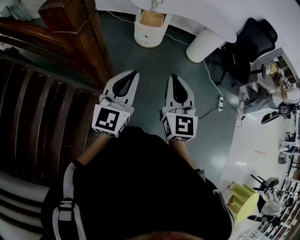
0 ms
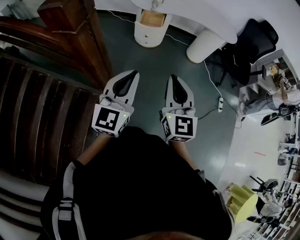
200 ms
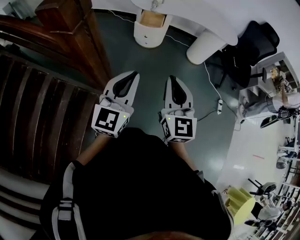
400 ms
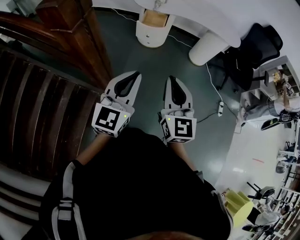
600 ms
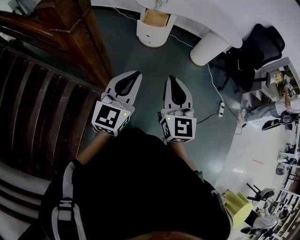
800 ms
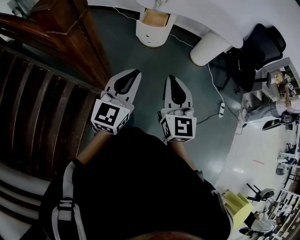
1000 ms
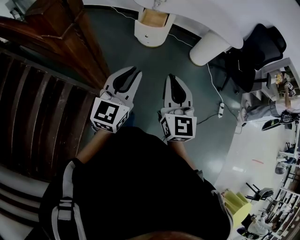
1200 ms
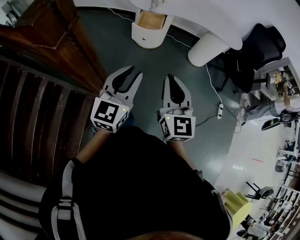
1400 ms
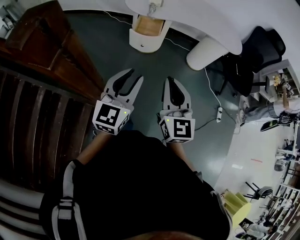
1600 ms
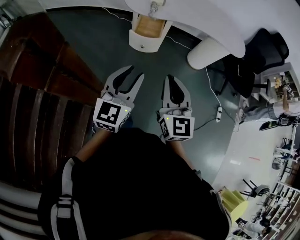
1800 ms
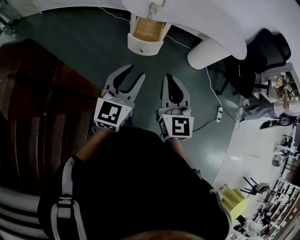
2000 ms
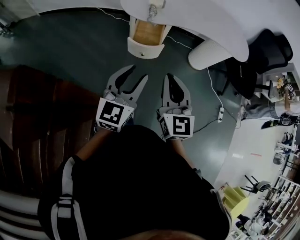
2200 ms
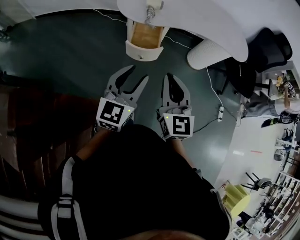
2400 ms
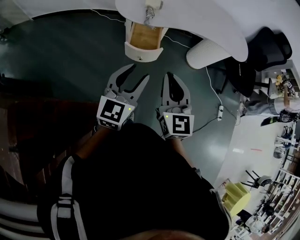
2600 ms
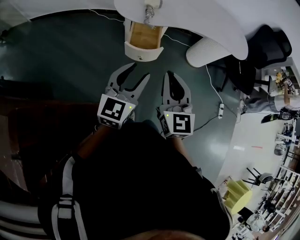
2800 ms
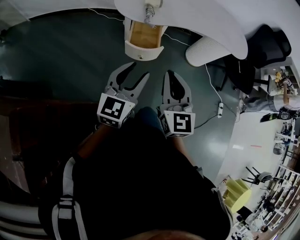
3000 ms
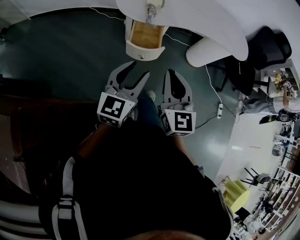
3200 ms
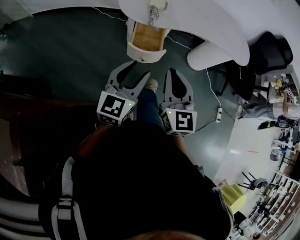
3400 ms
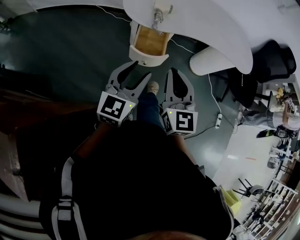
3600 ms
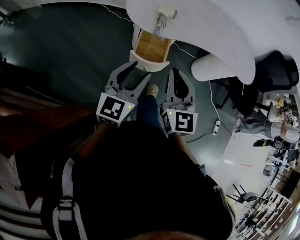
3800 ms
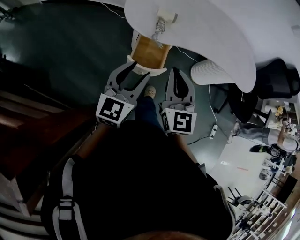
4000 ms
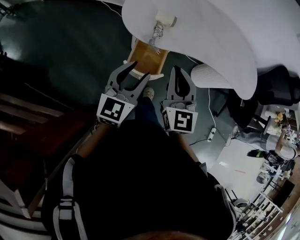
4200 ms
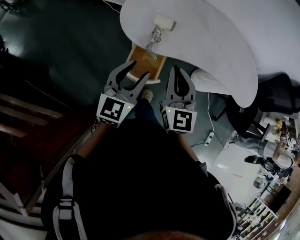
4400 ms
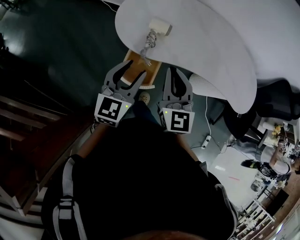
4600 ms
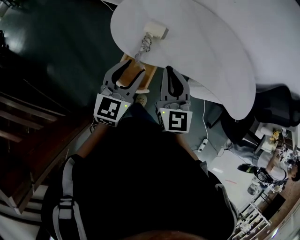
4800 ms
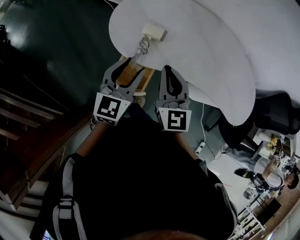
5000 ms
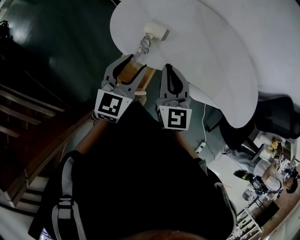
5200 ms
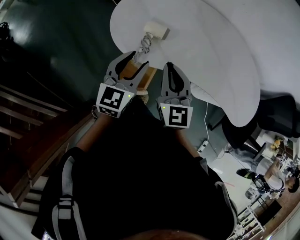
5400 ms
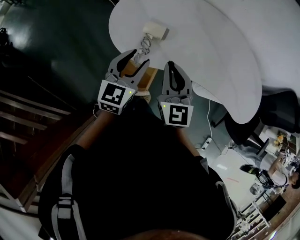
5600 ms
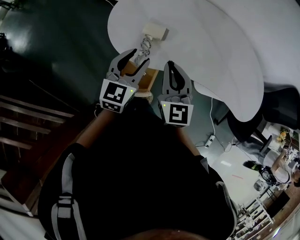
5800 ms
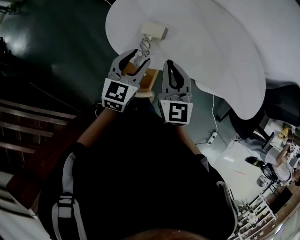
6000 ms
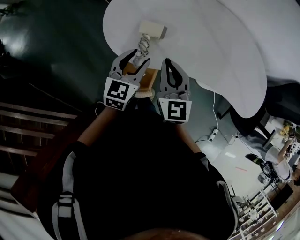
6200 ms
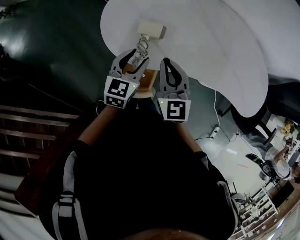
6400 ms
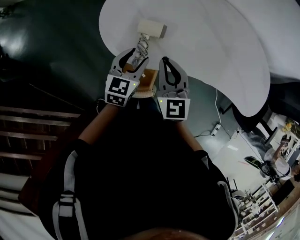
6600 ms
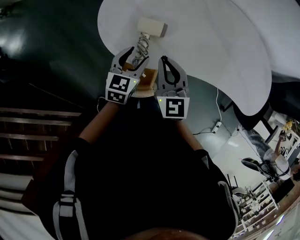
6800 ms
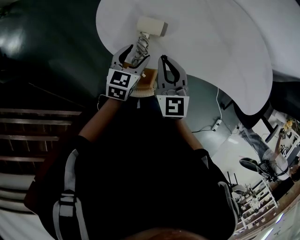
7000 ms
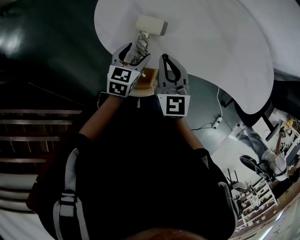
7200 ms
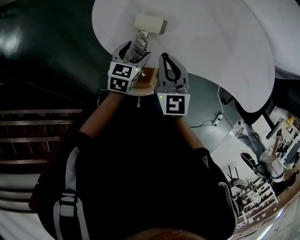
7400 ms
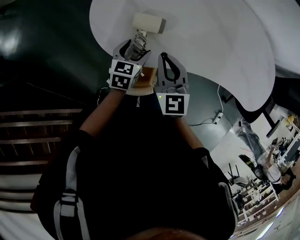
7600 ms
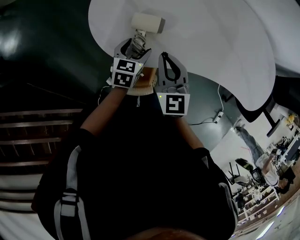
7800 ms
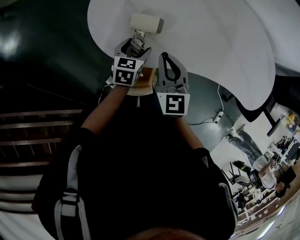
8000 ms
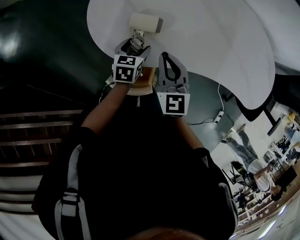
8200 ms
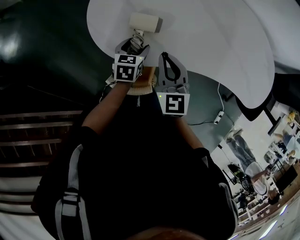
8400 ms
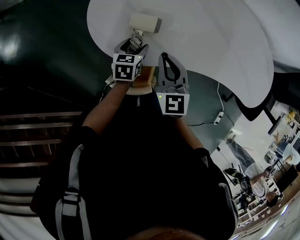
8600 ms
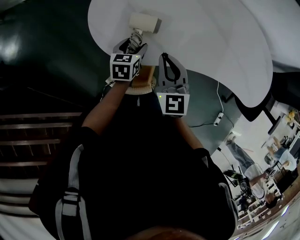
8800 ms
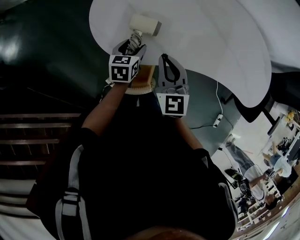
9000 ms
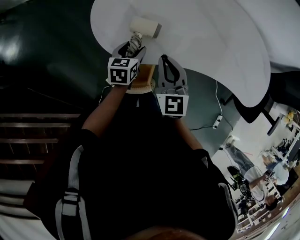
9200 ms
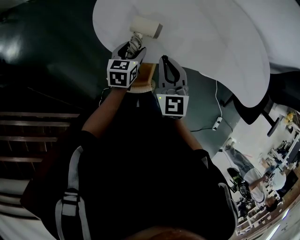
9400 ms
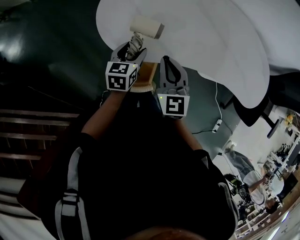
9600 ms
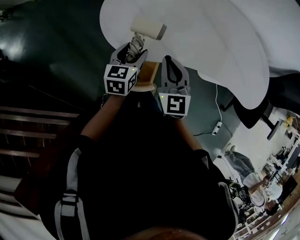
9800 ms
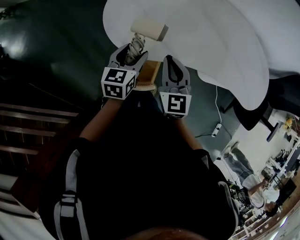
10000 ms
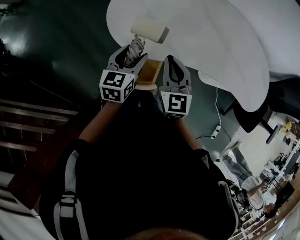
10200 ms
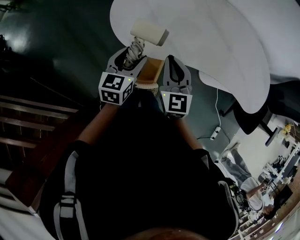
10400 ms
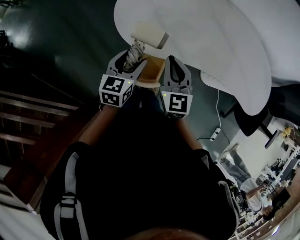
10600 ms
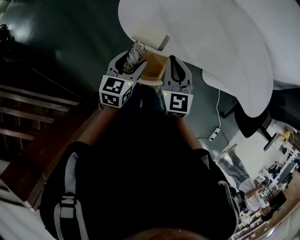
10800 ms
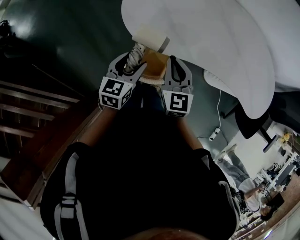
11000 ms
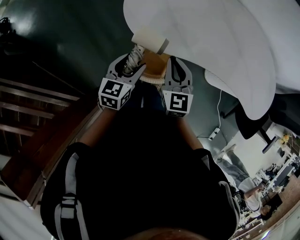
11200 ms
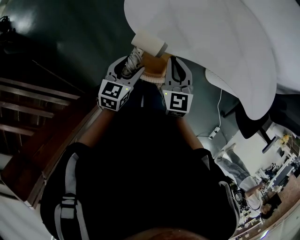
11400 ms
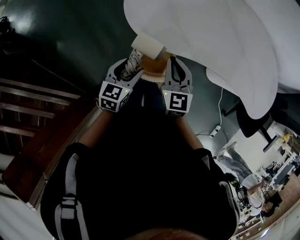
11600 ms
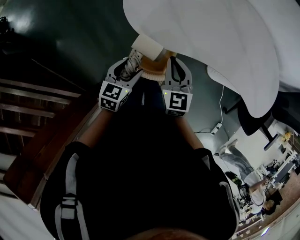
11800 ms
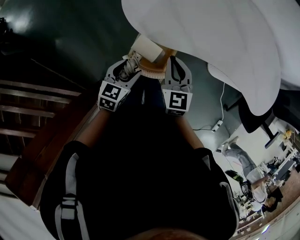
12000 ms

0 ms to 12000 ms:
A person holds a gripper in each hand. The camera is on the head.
0 ms to 1600 ms: The grippers both shift forward by roughly 15 cm.
1600 ms to 3000 ms: Both grippers move forward, approximately 25 cm.
3000 ms to 4400 ms: Both grippers travel together forward, some 25 cm.
4400 ms to 6000 ms: The right gripper travels forward and downward by some 15 cm; the left gripper heads forward, covering roughly 20 cm.
6000 ms to 7600 ms: The right gripper heads downward and forward, covering some 10 cm. The left gripper is displaced downward and forward by approximately 20 cm, swivels about 30 degrees, and opens its fingers.
7600 ms to 9000 ms: The grippers move only a little.
9000 ms to 10400 ms: The left gripper travels upward and backward by some 15 cm; the right gripper heads backward, covering approximately 5 cm.
10400 ms to 12000 ms: The right gripper moves downward, roughly 10 cm; the left gripper shifts about 15 cm downward and backward.

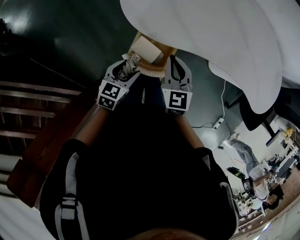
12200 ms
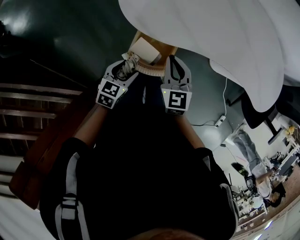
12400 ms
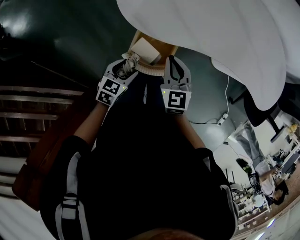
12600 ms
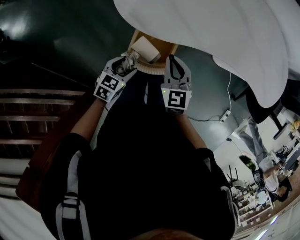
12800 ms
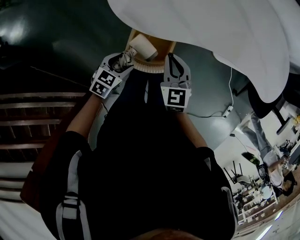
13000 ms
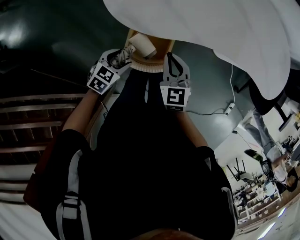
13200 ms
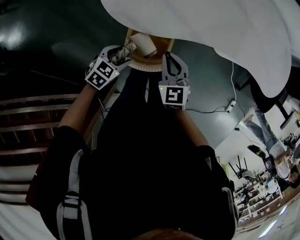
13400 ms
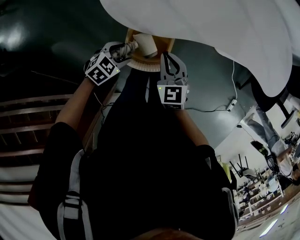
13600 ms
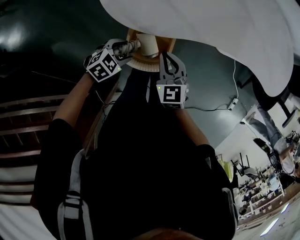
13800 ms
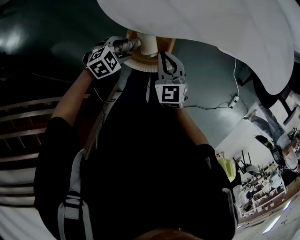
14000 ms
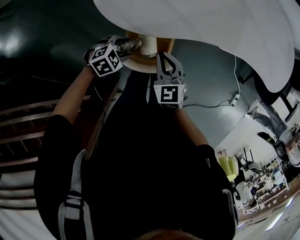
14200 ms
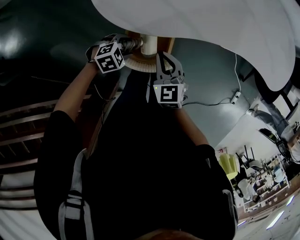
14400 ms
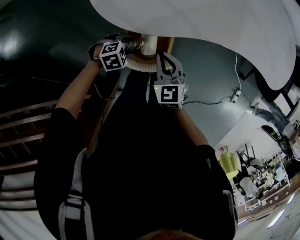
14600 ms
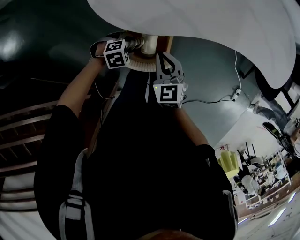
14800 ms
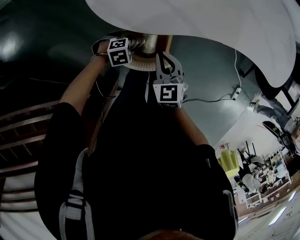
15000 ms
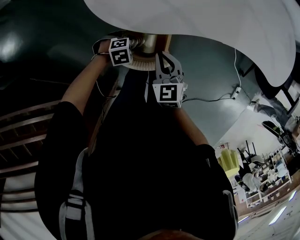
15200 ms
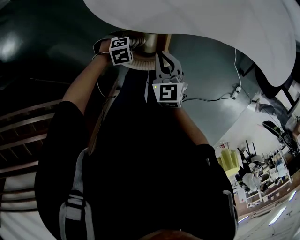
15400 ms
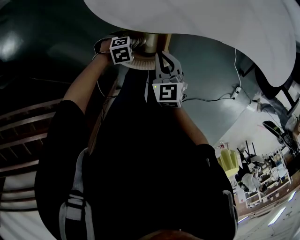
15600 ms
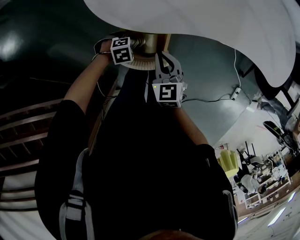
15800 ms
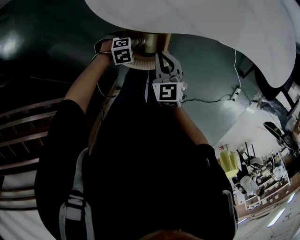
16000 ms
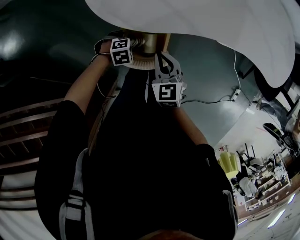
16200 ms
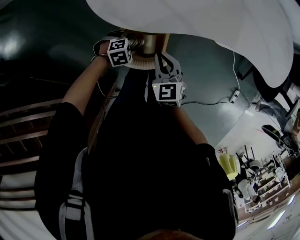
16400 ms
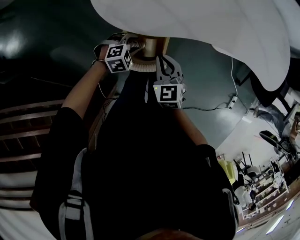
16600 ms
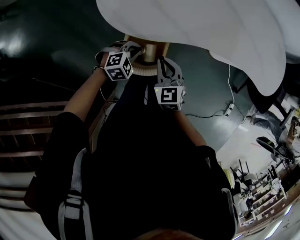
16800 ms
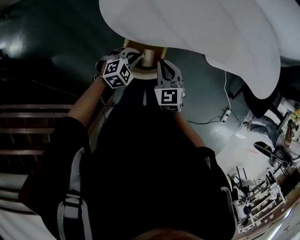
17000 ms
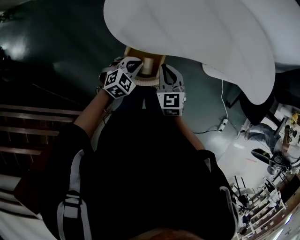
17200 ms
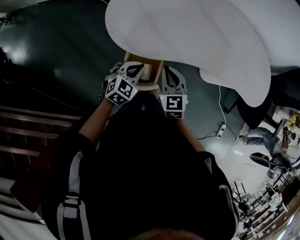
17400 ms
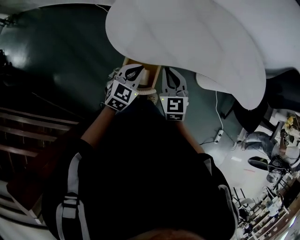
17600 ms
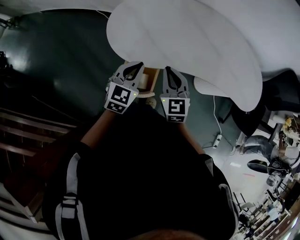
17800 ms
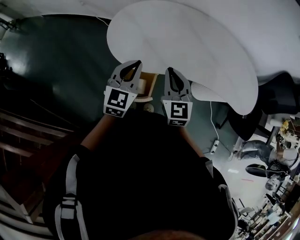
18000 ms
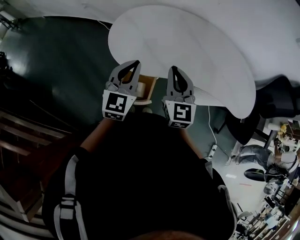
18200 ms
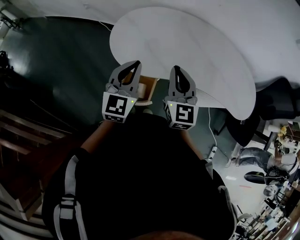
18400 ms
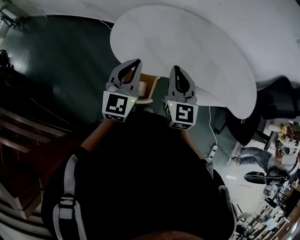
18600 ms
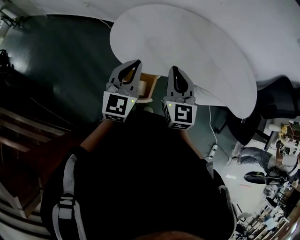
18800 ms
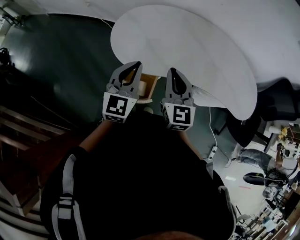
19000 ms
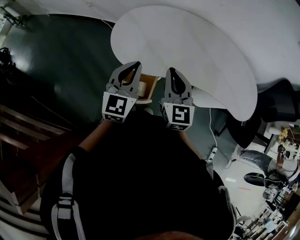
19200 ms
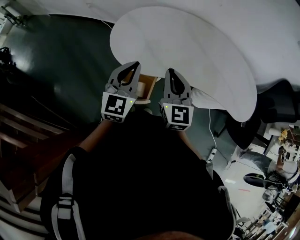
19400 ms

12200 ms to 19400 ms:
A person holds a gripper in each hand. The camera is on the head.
12200 ms to 13600 ms: The grippers both shift downward by roughly 5 cm. The left gripper swivels roughly 40 degrees.
13600 ms to 15000 ms: The left gripper shifts about 10 cm downward, and changes its angle by roughly 30 degrees.
15000 ms to 16600 ms: The left gripper is displaced upward by about 5 cm.
16600 ms to 18000 ms: The two grippers go roughly 30 cm upward. The left gripper tips its fingers upward by approximately 50 degrees, and closes; the right gripper rotates approximately 30 degrees.
18000 ms to 19400 ms: The grippers stay close to where they were, moving slightly.

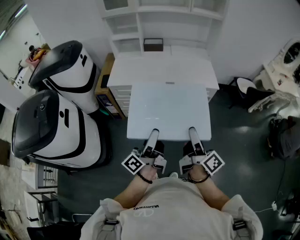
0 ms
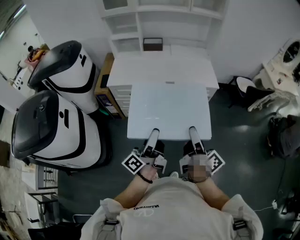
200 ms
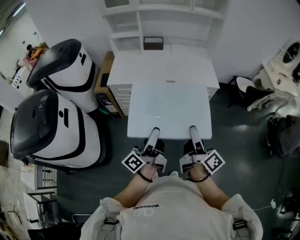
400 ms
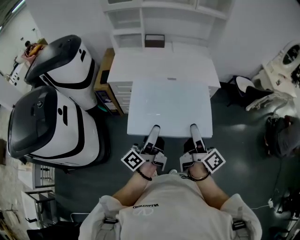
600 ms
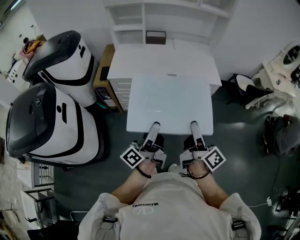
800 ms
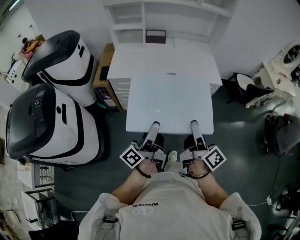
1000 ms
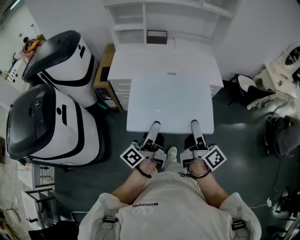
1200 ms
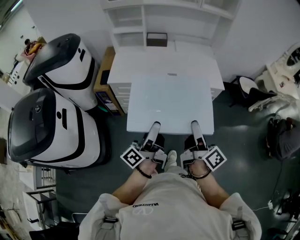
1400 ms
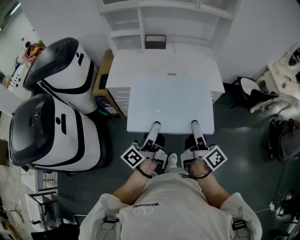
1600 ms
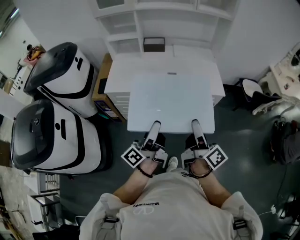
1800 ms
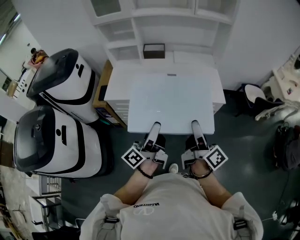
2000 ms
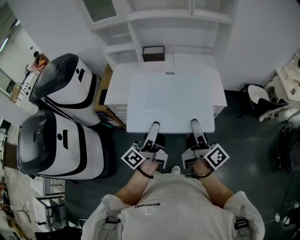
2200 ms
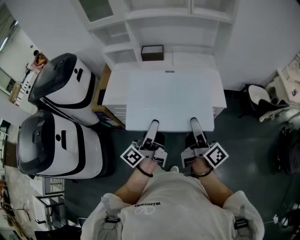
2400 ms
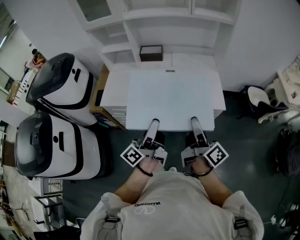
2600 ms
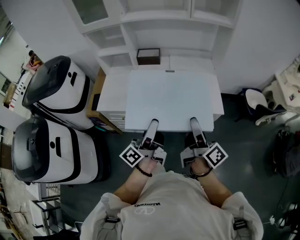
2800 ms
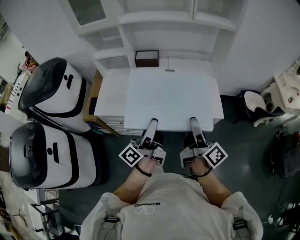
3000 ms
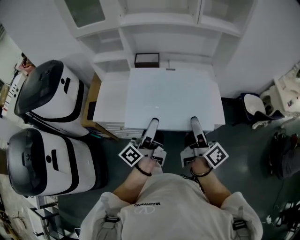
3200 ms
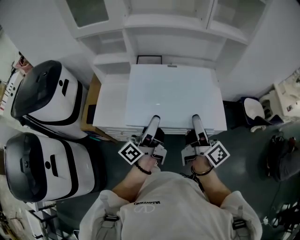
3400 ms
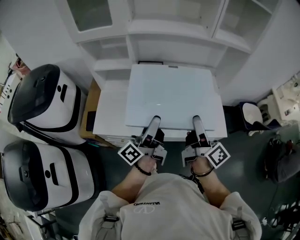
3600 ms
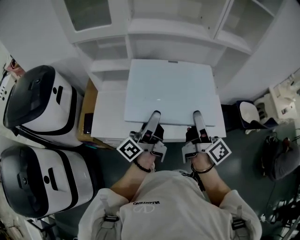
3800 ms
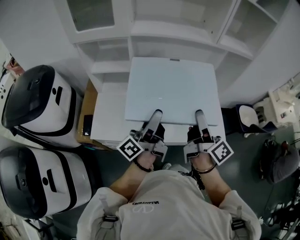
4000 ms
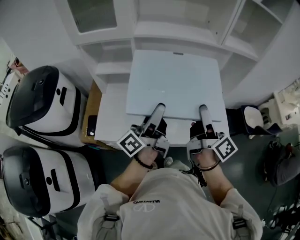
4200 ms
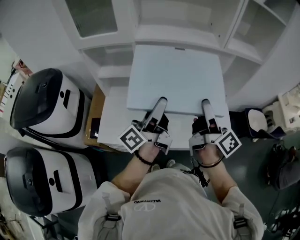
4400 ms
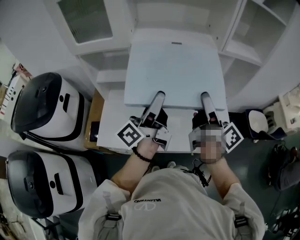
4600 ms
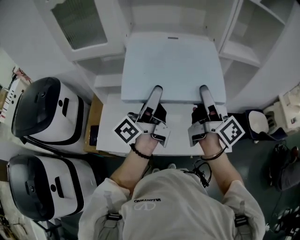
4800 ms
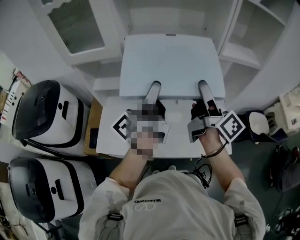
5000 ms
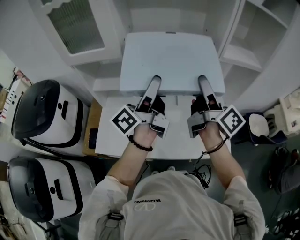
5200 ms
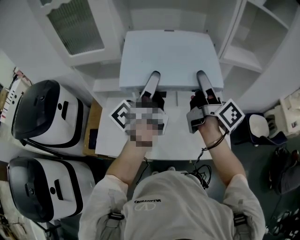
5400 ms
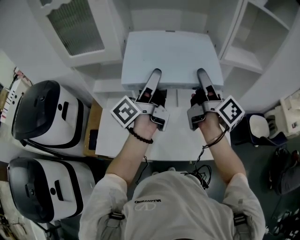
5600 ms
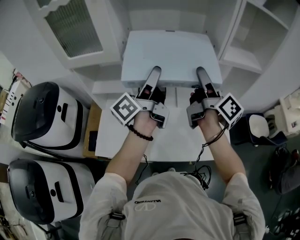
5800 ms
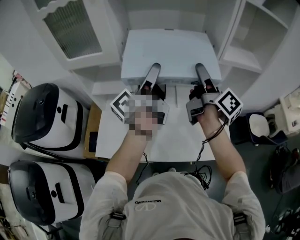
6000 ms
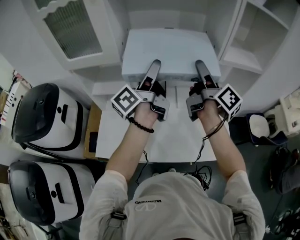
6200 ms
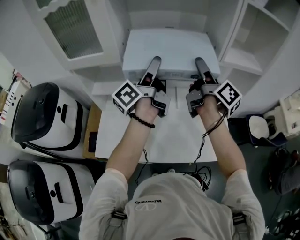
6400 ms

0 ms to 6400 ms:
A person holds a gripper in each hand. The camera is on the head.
0 ms to 1600 ms: Both grippers travel together forward, about 10 cm.
1600 ms to 3200 ms: The grippers both shift forward by approximately 30 cm.
3200 ms to 4800 ms: The grippers both shift forward and upward by some 30 cm.
4800 ms to 6400 ms: Both grippers travel together forward, roughly 15 cm.
